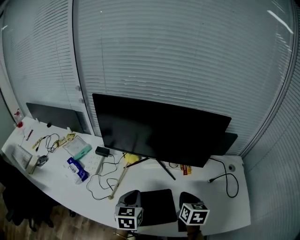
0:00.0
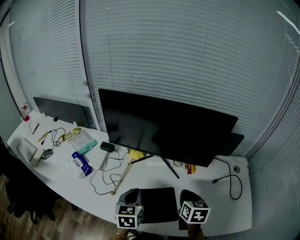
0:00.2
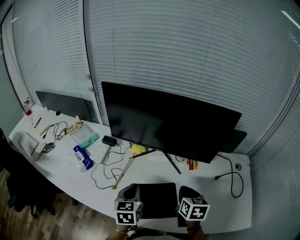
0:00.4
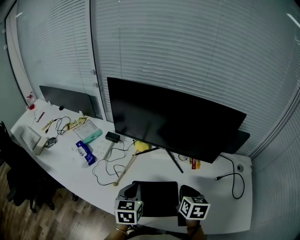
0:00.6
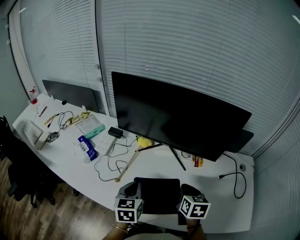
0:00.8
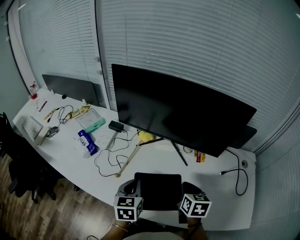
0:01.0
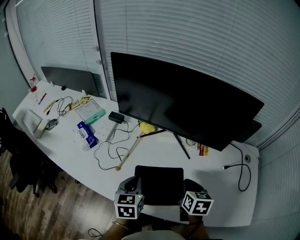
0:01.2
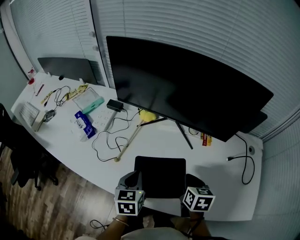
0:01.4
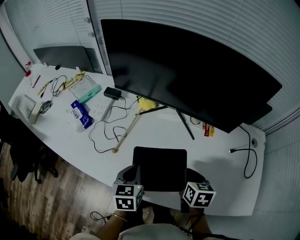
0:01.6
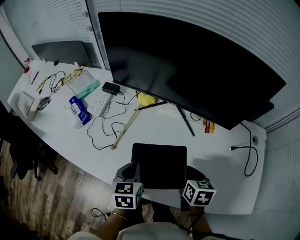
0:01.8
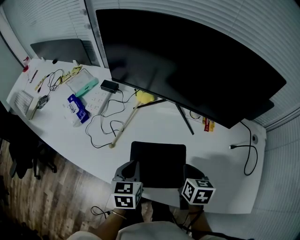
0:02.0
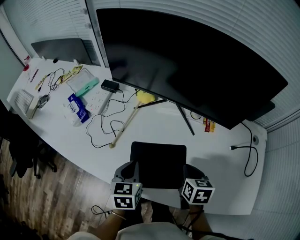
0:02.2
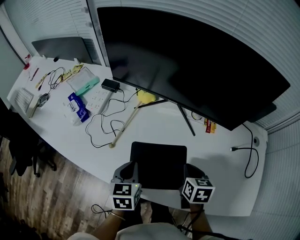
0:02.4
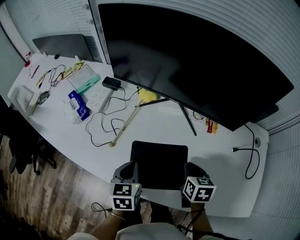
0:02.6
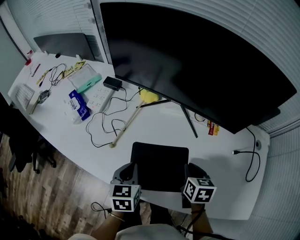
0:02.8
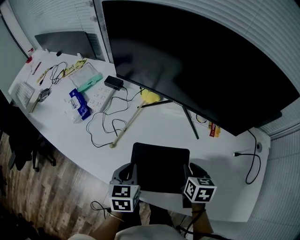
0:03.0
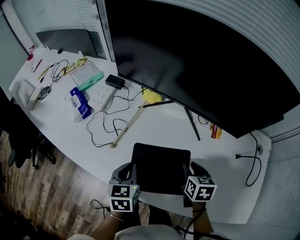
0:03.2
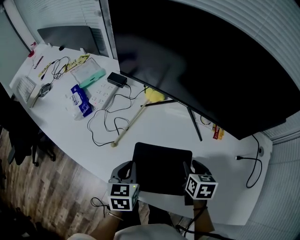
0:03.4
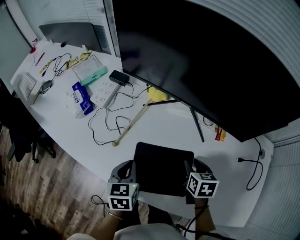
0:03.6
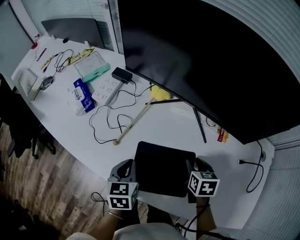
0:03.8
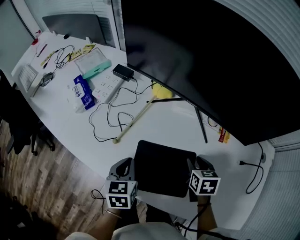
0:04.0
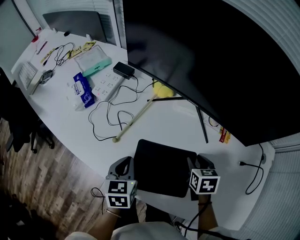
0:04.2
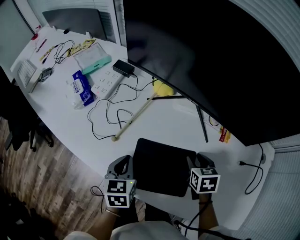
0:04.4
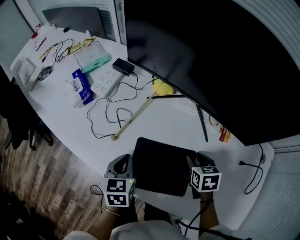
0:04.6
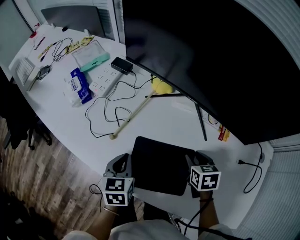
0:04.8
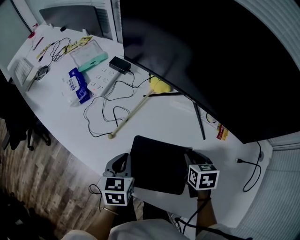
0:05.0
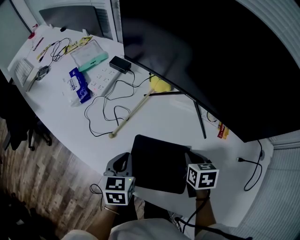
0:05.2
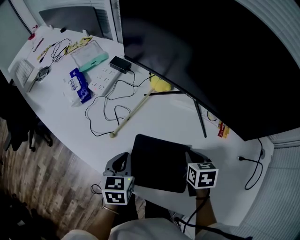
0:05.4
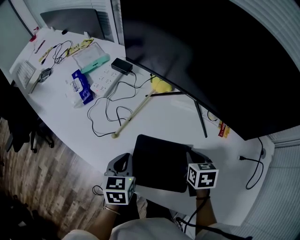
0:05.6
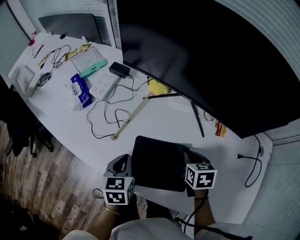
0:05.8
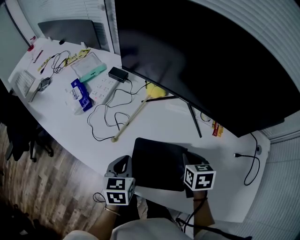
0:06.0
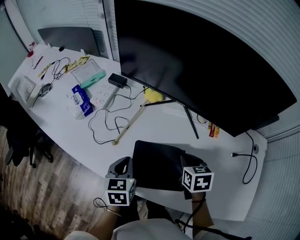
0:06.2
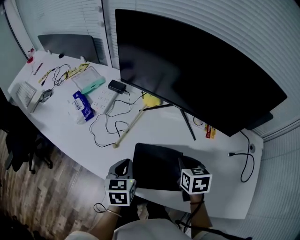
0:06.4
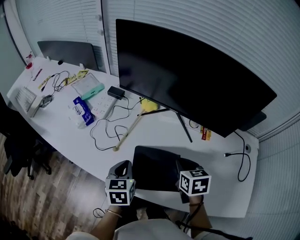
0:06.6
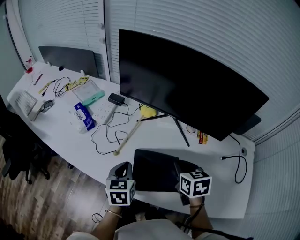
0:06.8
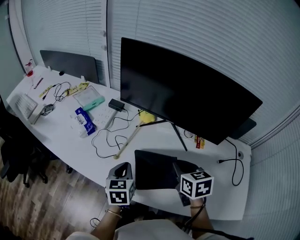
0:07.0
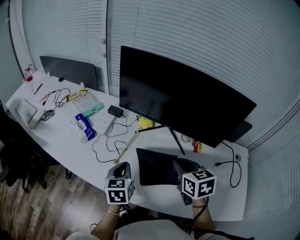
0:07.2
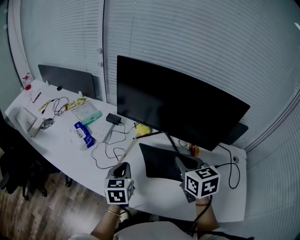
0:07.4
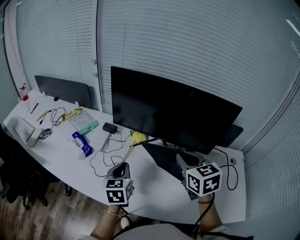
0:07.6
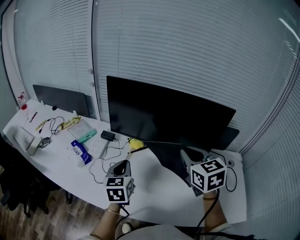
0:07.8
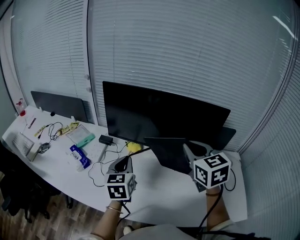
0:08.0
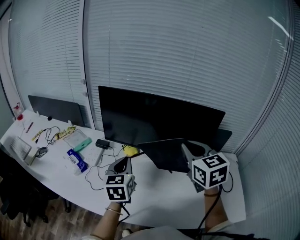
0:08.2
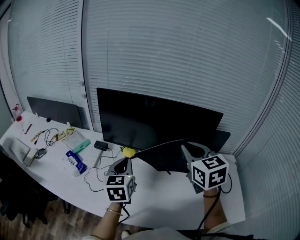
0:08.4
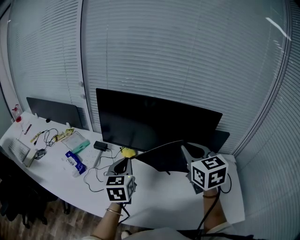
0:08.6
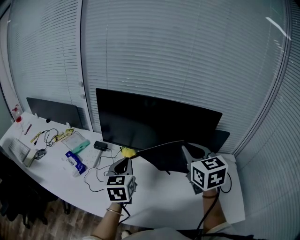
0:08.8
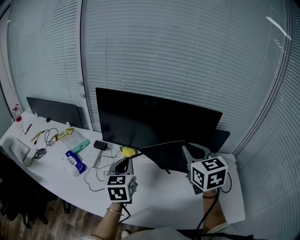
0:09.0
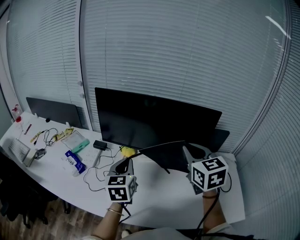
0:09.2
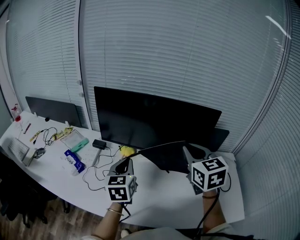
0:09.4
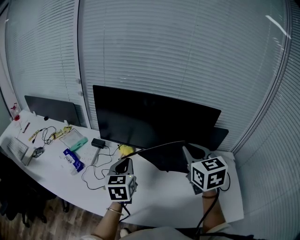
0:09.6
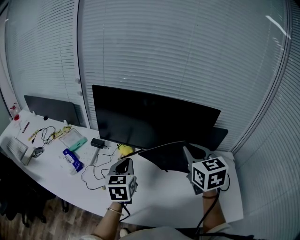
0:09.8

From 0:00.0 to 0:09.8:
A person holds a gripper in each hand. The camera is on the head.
From 0:00.0 to 0:01.4: The right gripper shifts roughly 10 cm downward; the left gripper shifts roughly 10 cm downward and backward.
From 0:01.4 to 0:02.8: There are only small adjustments of the grippers.
From 0:02.8 to 0:04.2: The right gripper shifts roughly 5 cm forward, and opens its fingers.
From 0:04.2 to 0:05.6: The right gripper closes up.
From 0:05.6 to 0:07.0: The left gripper goes about 5 cm upward. The right gripper shifts roughly 15 cm upward.
From 0:07.0 to 0:08.4: The right gripper shifts roughly 20 cm upward, and rotates approximately 30 degrees. Meanwhile the left gripper is displaced upward and forward by about 20 cm, and turns by approximately 20 degrees.
From 0:08.4 to 0:09.8: The grippers stay close to where they were, moving slightly.

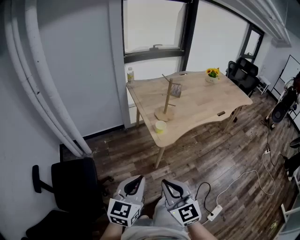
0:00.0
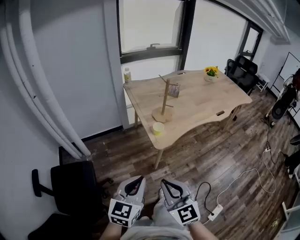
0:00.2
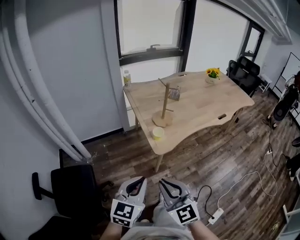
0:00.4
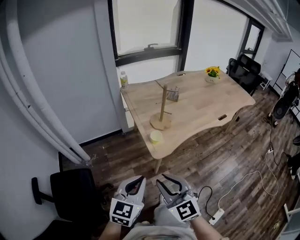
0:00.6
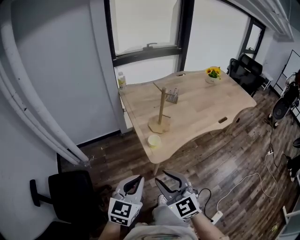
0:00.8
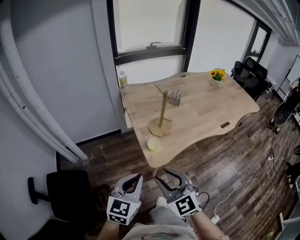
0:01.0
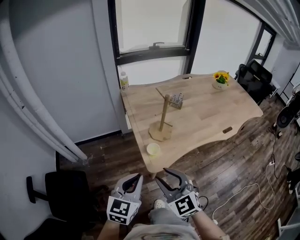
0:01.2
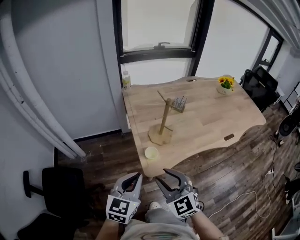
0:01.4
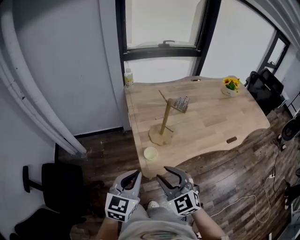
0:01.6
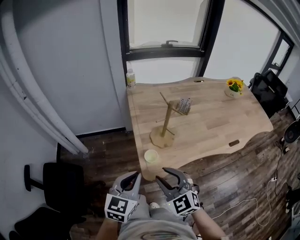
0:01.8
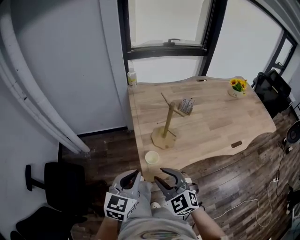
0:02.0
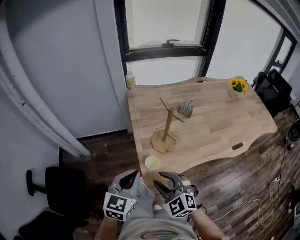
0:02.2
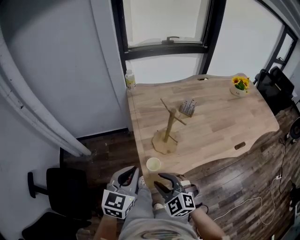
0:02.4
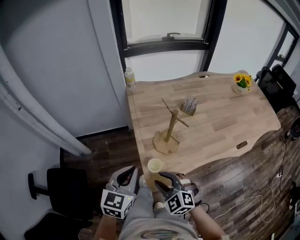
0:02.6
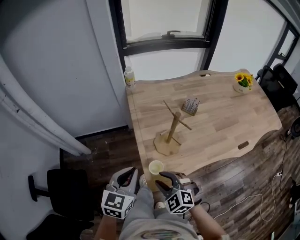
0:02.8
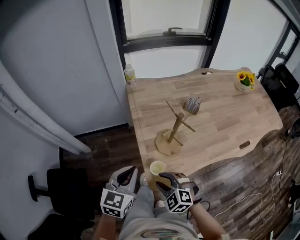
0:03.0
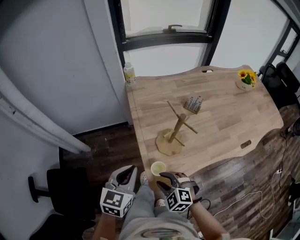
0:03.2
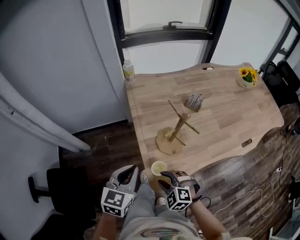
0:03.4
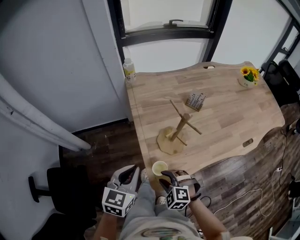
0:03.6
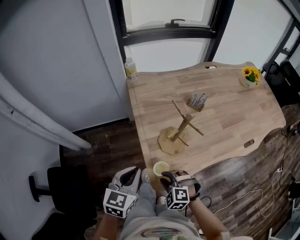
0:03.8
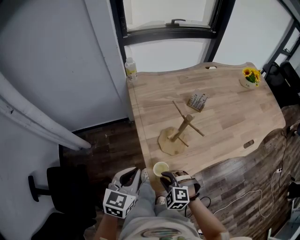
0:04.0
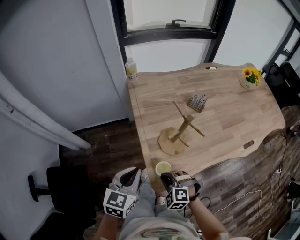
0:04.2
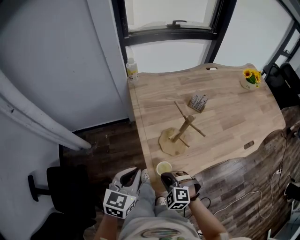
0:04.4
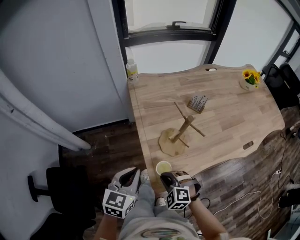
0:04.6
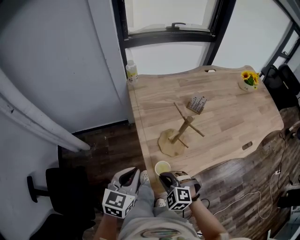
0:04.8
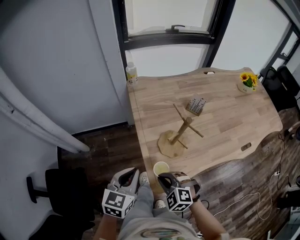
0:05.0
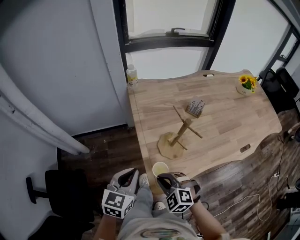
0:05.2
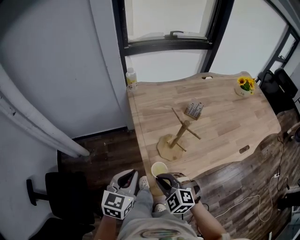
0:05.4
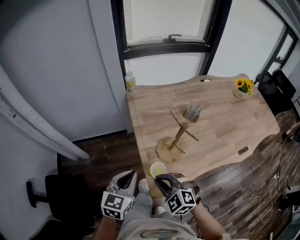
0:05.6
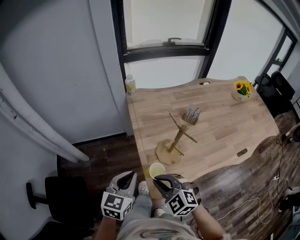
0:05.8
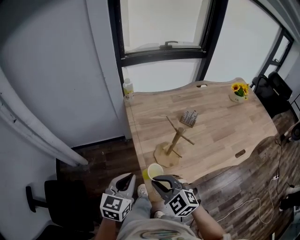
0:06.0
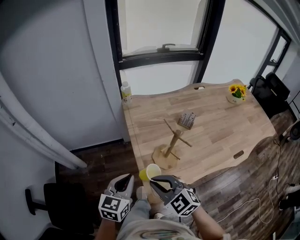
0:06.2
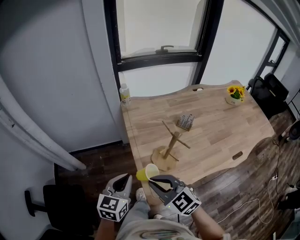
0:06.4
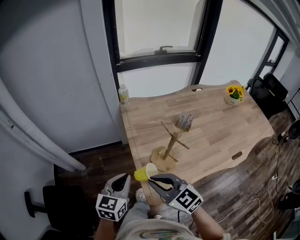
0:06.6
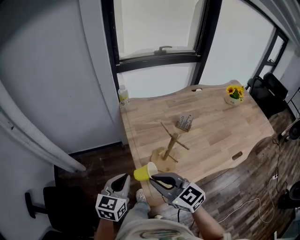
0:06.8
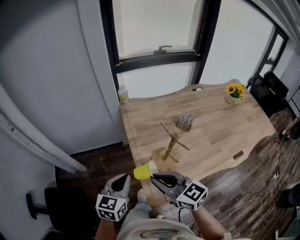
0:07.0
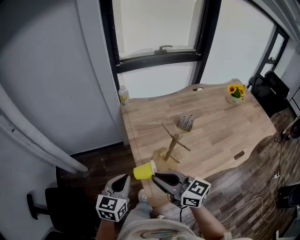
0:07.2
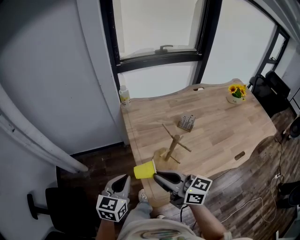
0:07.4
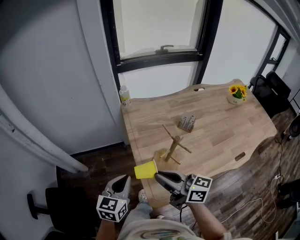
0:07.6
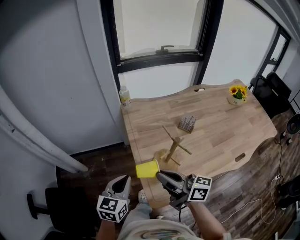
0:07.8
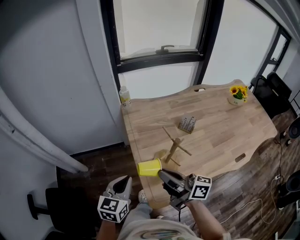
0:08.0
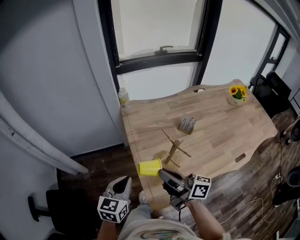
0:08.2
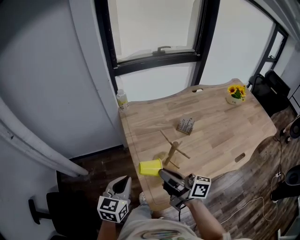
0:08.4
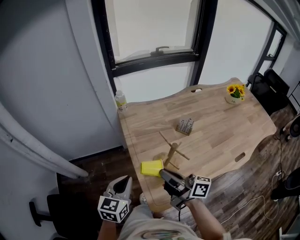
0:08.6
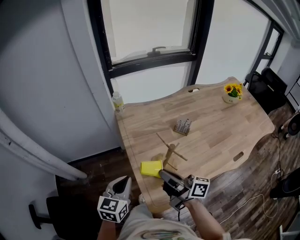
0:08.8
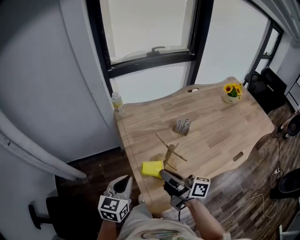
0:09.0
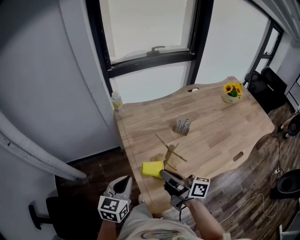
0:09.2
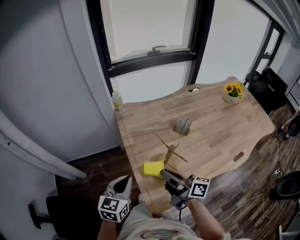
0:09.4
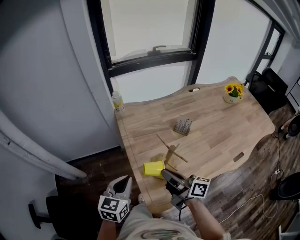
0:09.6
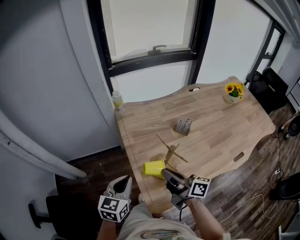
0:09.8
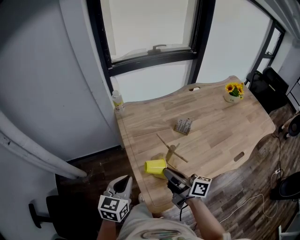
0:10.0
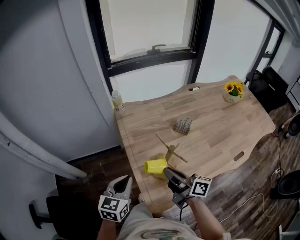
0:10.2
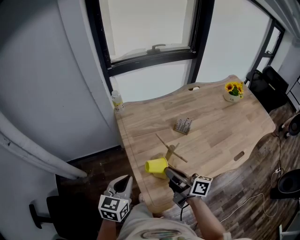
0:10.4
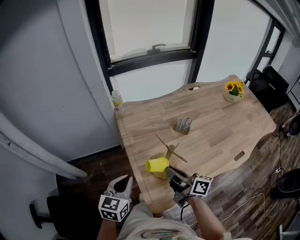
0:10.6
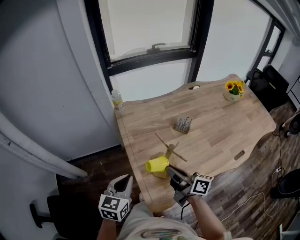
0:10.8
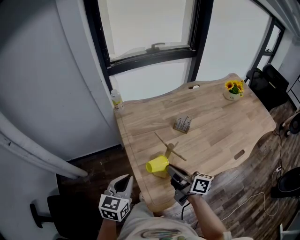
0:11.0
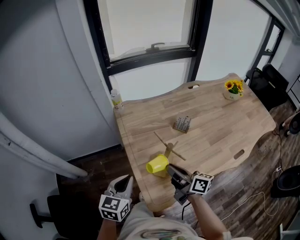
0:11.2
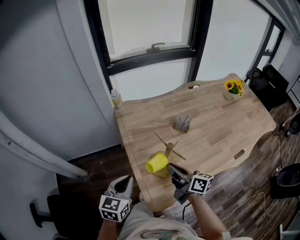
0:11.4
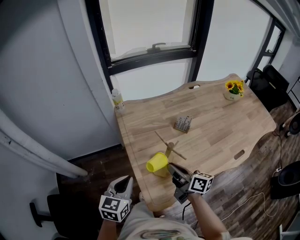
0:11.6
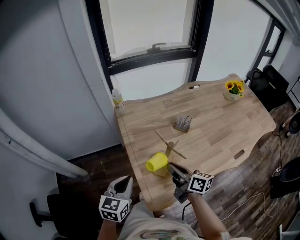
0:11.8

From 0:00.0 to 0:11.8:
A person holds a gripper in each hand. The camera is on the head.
From 0:00.0 to 0:01.4: The left gripper travels forward and to the right by approximately 25 cm, while the right gripper shifts roughly 25 cm forward, and opens up.
From 0:01.4 to 0:03.0: The right gripper goes some 20 cm downward and forward, and turns by roughly 30 degrees; the left gripper is displaced forward by some 15 cm.
From 0:03.0 to 0:04.4: The right gripper shifts roughly 5 cm downward, and closes up.
From 0:04.4 to 0:06.0: The right gripper heads upward, covering about 15 cm, and turns by approximately 30 degrees.
From 0:06.0 to 0:07.4: The right gripper travels upward by approximately 10 cm, and tilts its fingers approximately 30 degrees upward.
From 0:07.4 to 0:08.8: The right gripper goes roughly 5 cm to the right, and turns by roughly 30 degrees.
From 0:08.8 to 0:10.4: The right gripper changes place by roughly 5 cm.
From 0:10.4 to 0:11.8: The grippers make only small movements.

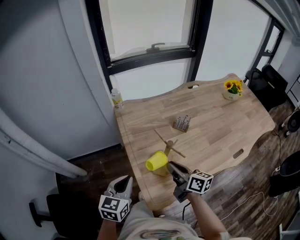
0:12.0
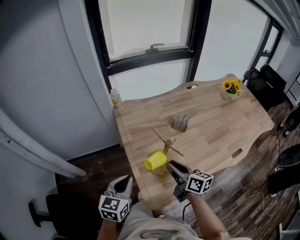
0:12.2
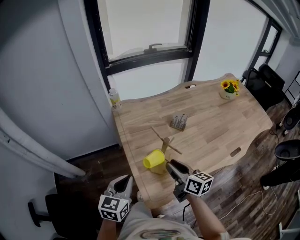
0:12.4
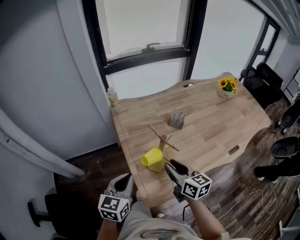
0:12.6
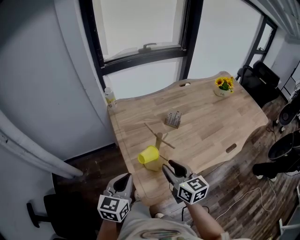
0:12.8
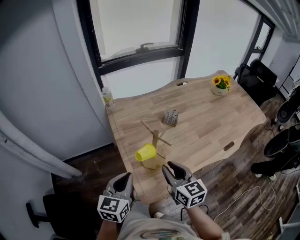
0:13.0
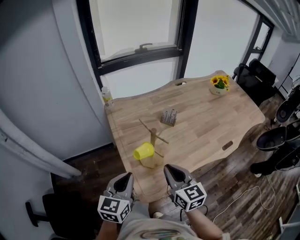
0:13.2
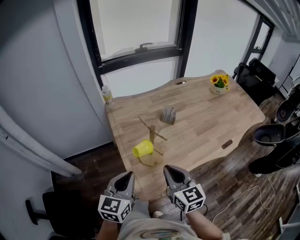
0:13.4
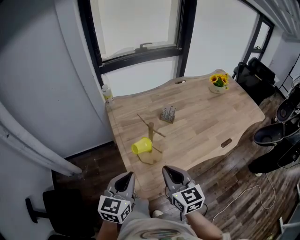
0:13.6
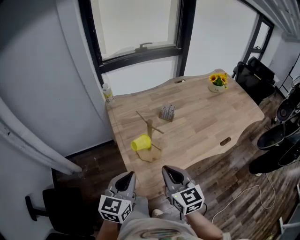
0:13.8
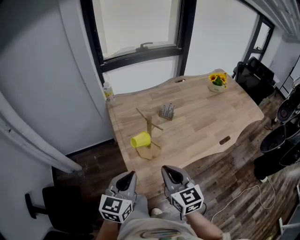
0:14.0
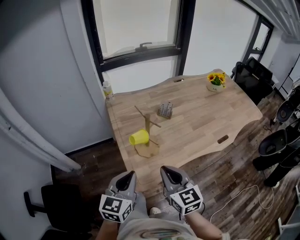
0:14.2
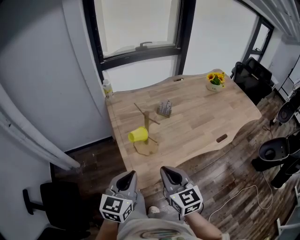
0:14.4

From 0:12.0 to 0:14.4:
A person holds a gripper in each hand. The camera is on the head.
From 0:12.0 to 0:13.2: The left gripper shifts approximately 5 cm to the right, while the right gripper shifts some 10 cm backward and upward, and changes its angle by approximately 40 degrees.
From 0:13.2 to 0:14.4: The grippers both shift backward by approximately 10 cm.
